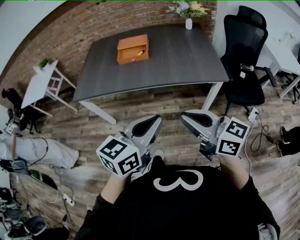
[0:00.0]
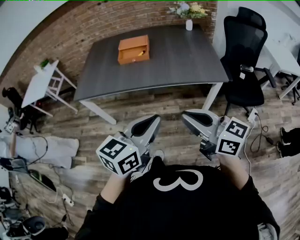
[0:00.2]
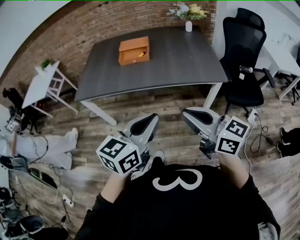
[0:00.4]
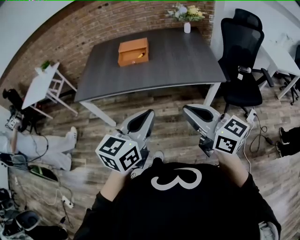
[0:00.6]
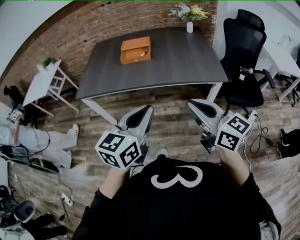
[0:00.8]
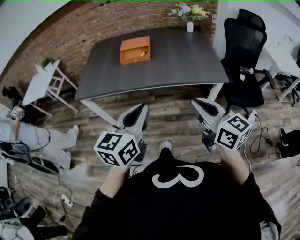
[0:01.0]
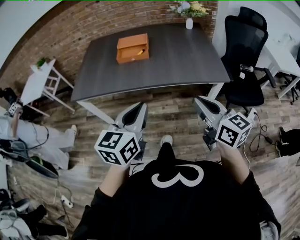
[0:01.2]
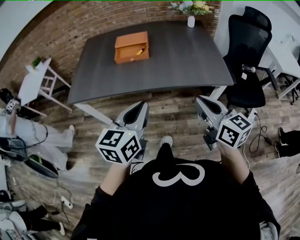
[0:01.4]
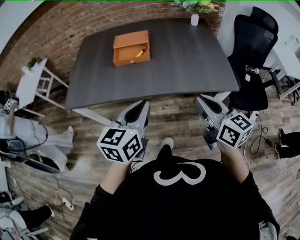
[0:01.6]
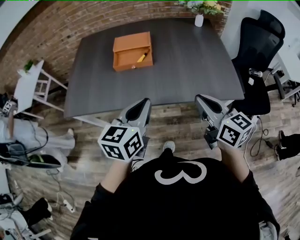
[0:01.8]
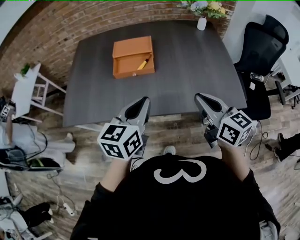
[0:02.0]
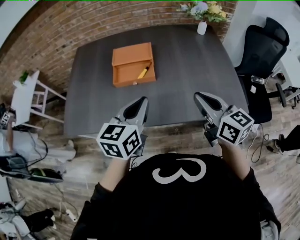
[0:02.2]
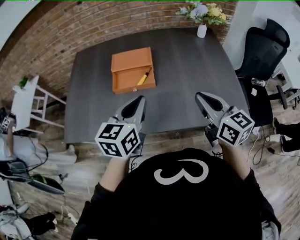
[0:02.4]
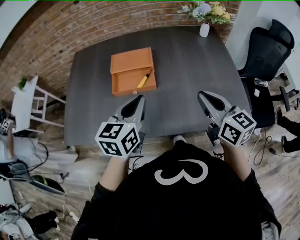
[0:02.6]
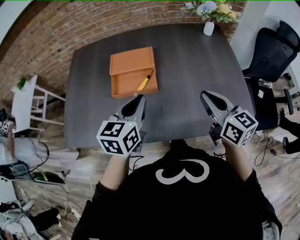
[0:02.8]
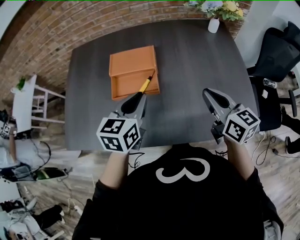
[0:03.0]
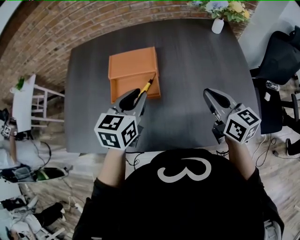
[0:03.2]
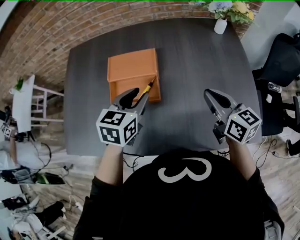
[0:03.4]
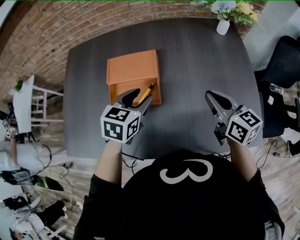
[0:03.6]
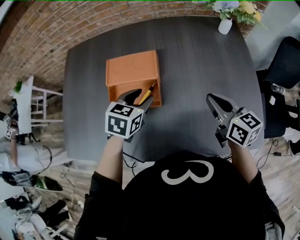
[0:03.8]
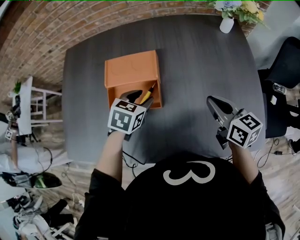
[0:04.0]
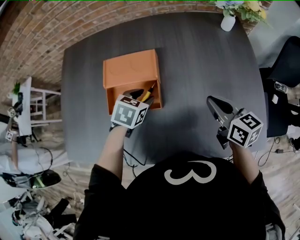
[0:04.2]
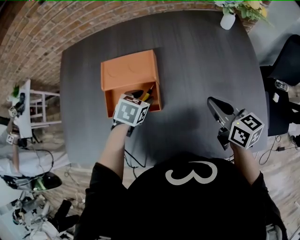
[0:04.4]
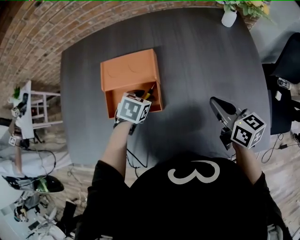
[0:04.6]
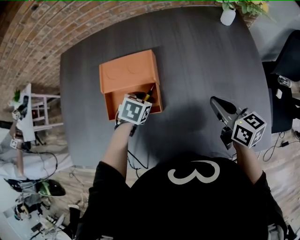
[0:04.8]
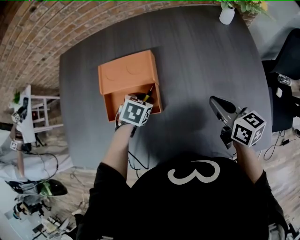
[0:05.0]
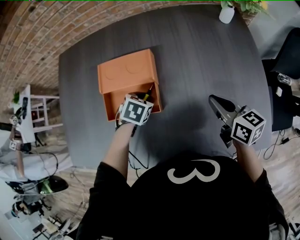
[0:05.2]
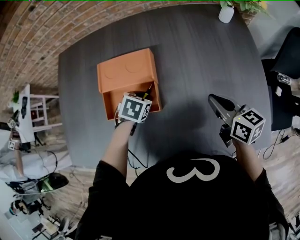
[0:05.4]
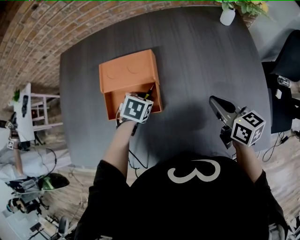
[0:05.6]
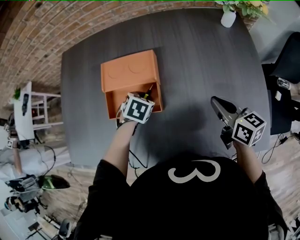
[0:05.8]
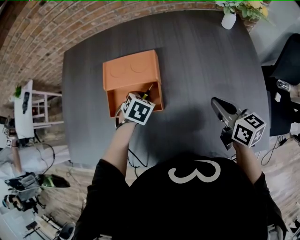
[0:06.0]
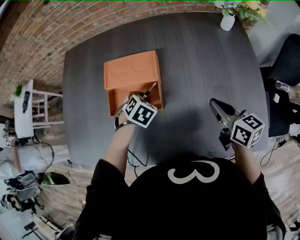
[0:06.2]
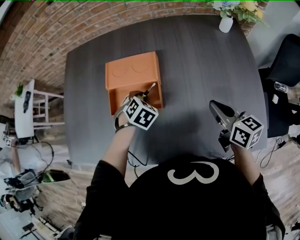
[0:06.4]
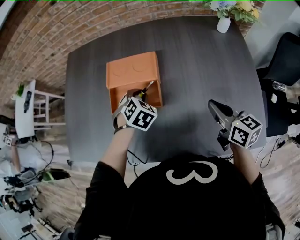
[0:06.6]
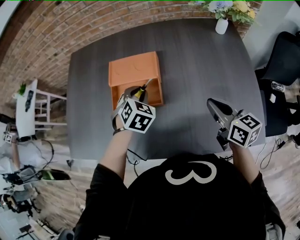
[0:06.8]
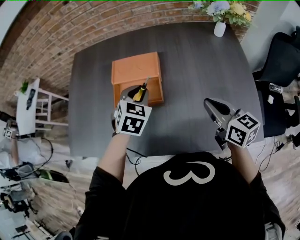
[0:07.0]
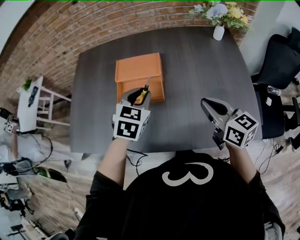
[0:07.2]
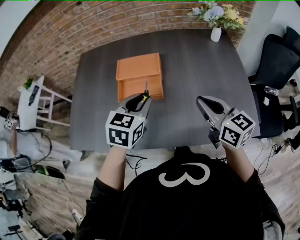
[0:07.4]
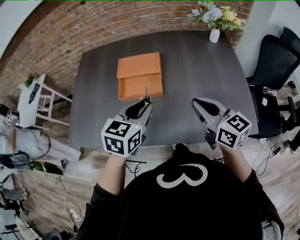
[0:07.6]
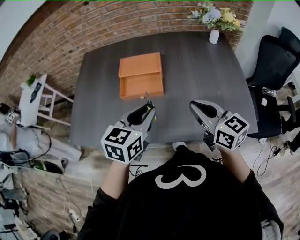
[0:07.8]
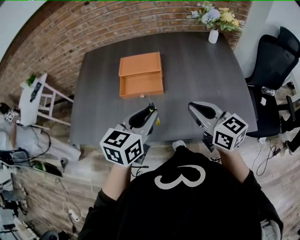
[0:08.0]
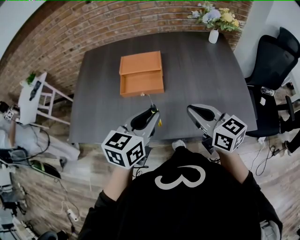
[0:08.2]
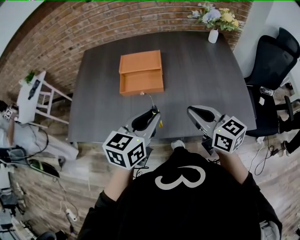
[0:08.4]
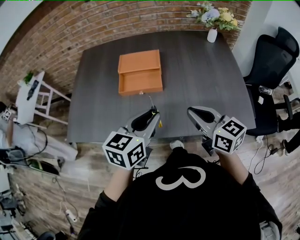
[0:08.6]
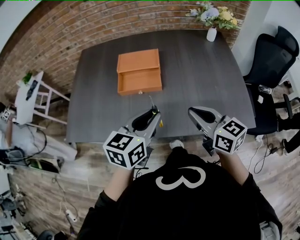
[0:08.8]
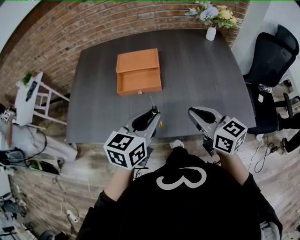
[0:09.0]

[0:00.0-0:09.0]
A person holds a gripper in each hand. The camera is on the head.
0:00.0 to 0:01.6: The grippers both shift forward by some 20 cm. The right gripper swivels some 20 degrees.
0:01.6 to 0:03.0: Both grippers travel together forward, about 35 cm.
0:03.0 to 0:04.4: The right gripper goes some 15 cm forward and downward; the left gripper travels downward and forward by roughly 20 cm, tips its fingers downward by roughly 40 degrees, and opens its fingers.
0:04.4 to 0:06.0: The left gripper closes.
0:06.0 to 0:07.6: The right gripper travels backward, upward and to the left by some 20 cm, and changes its angle by about 20 degrees. Meanwhile the left gripper heads upward and backward, covering roughly 30 cm, and angles its fingers upward, by approximately 40 degrees.
0:07.6 to 0:09.0: The two grippers go some 5 cm backward.

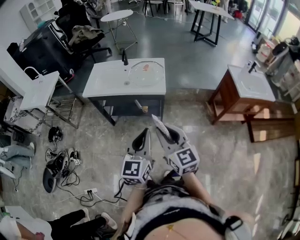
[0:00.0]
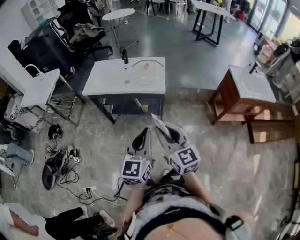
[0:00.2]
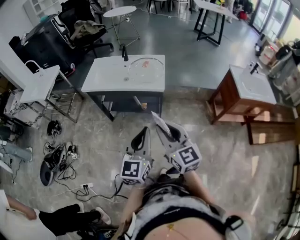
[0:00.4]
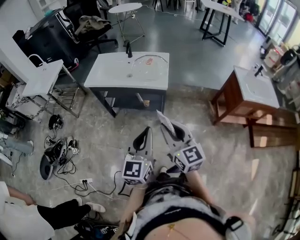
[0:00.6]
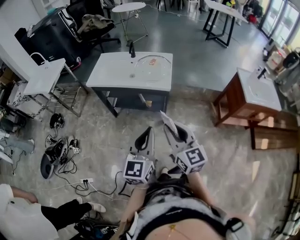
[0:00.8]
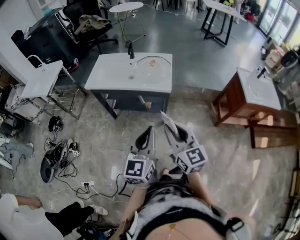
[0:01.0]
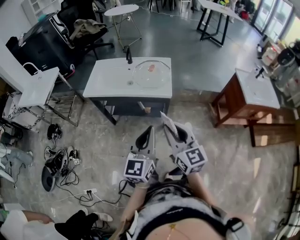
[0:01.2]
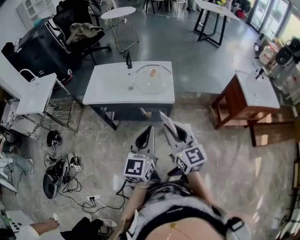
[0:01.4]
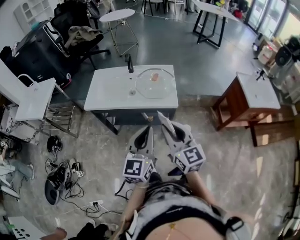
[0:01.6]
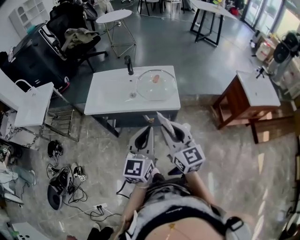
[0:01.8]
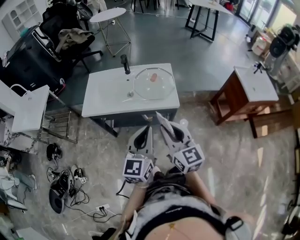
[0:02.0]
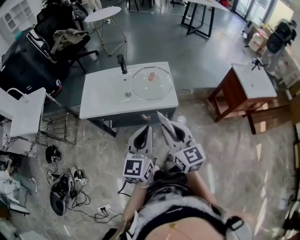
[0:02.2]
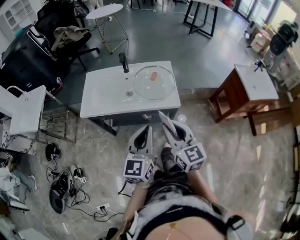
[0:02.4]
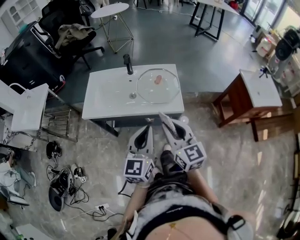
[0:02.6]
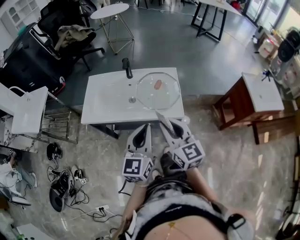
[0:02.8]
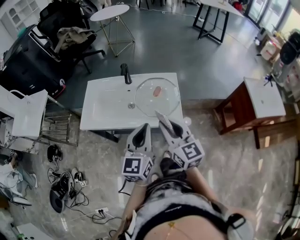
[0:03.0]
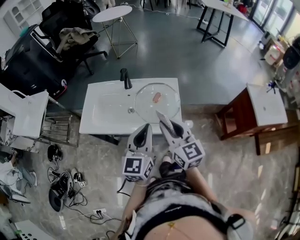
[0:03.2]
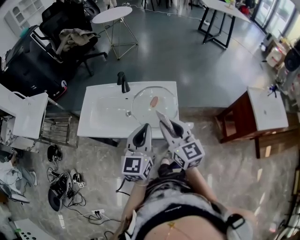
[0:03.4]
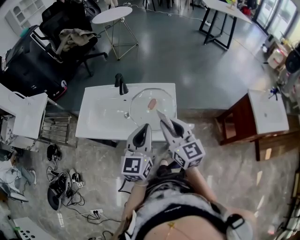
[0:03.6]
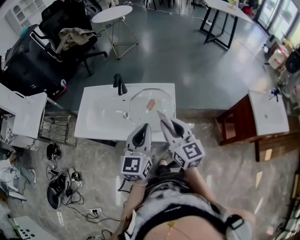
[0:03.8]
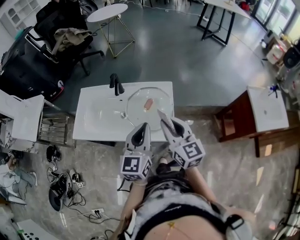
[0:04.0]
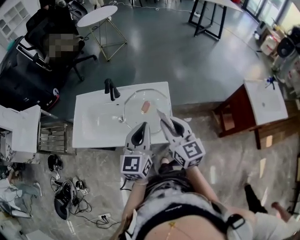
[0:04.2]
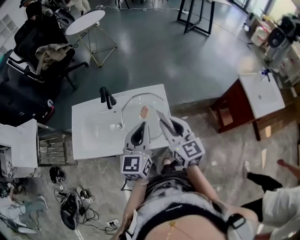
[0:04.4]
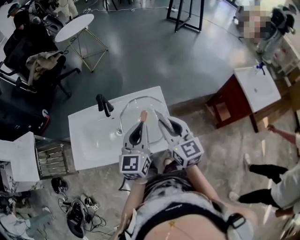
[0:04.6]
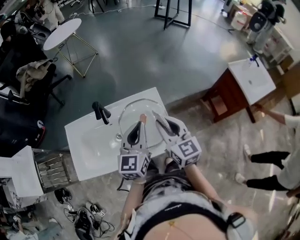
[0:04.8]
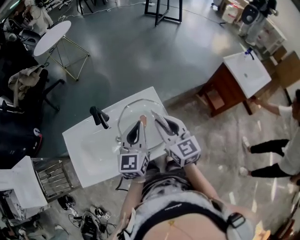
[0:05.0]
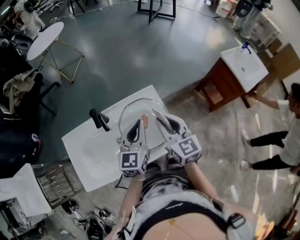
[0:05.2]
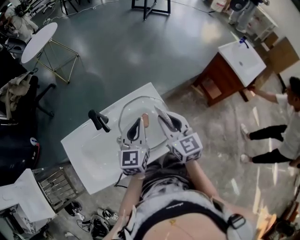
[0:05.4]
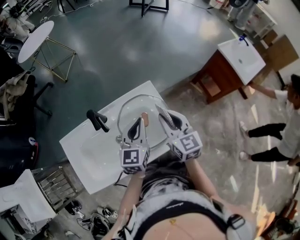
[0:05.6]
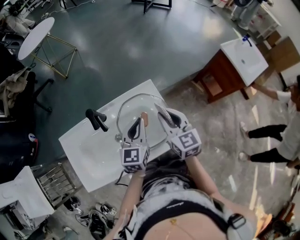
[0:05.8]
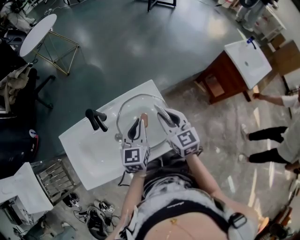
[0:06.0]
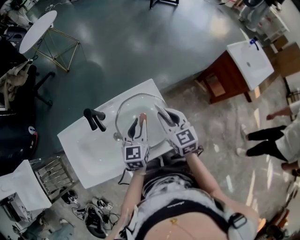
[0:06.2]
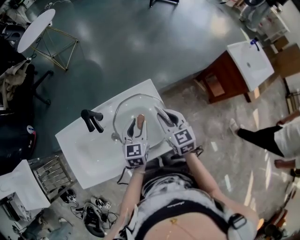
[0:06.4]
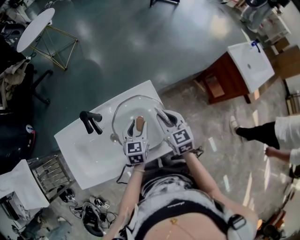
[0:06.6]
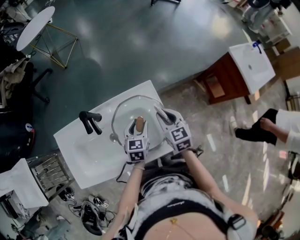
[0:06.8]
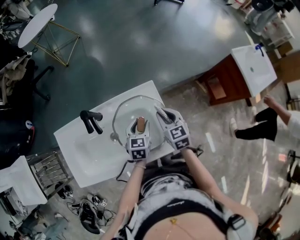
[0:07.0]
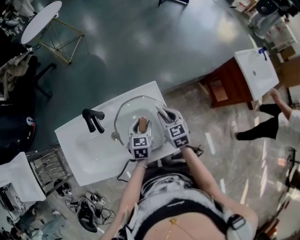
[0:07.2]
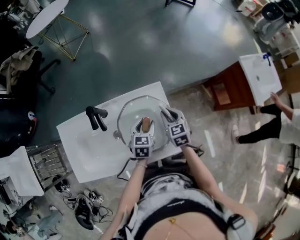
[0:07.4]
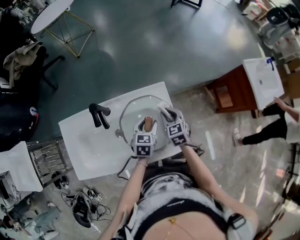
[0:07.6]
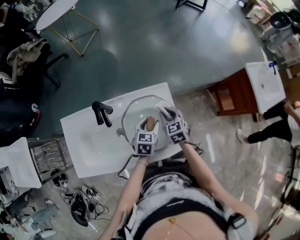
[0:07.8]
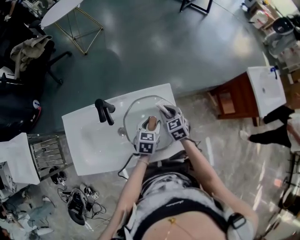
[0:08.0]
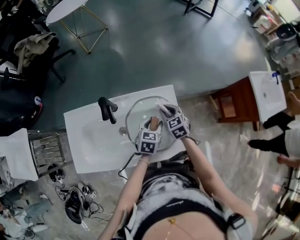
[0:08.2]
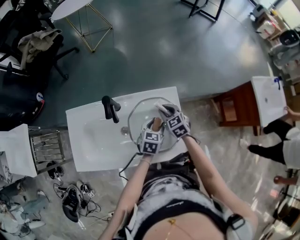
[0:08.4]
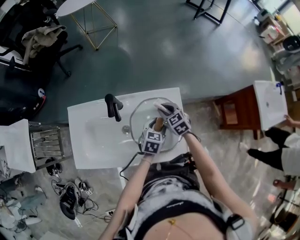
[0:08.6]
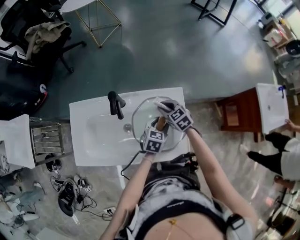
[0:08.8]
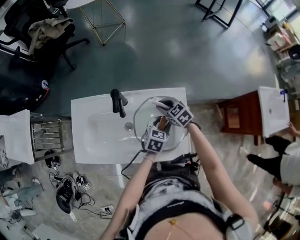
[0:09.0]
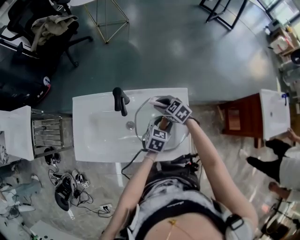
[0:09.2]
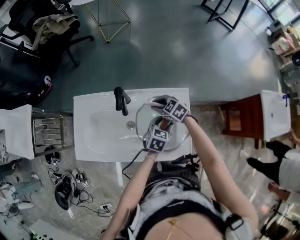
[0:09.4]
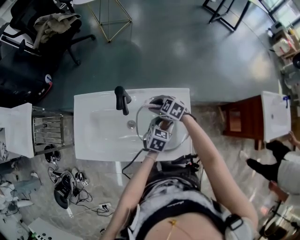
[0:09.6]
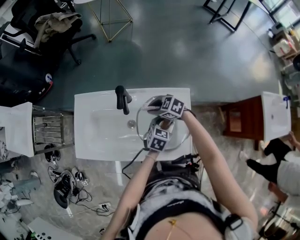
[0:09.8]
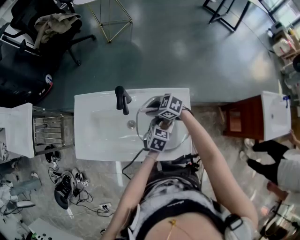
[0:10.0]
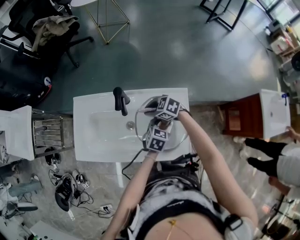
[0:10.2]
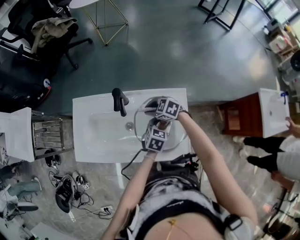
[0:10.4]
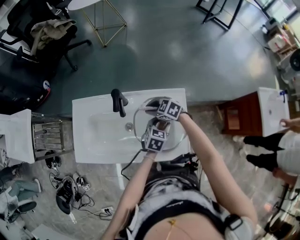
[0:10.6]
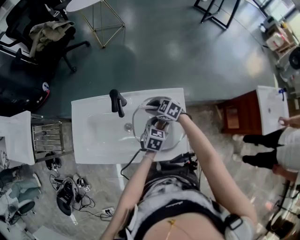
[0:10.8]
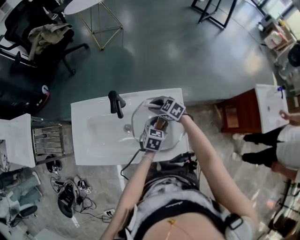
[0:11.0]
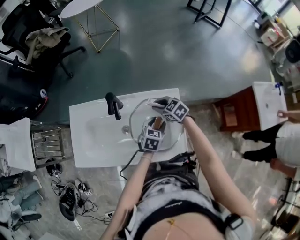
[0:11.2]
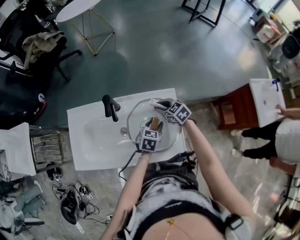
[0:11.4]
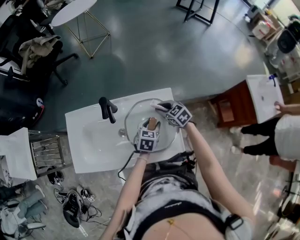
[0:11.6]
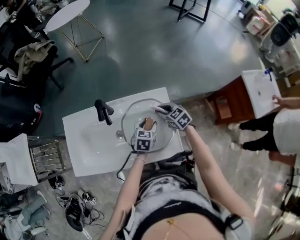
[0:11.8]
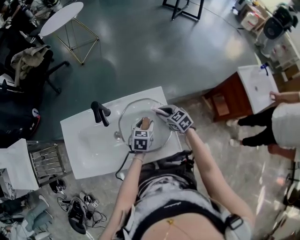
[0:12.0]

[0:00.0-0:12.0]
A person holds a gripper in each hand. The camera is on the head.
0:00.0 to 0:01.6: The right gripper goes some 15 cm forward; the left gripper travels forward and to the left by roughly 15 cm.
0:01.6 to 0:03.0: The grippers both shift forward by some 20 cm.
0:03.0 to 0:04.4: Both grippers travel together forward and to the right, roughly 15 cm.
0:04.4 to 0:06.0: The right gripper travels forward and downward by roughly 15 cm, and rotates approximately 20 degrees; the left gripper travels downward and forward by approximately 15 cm, and swivels roughly 20 degrees.
0:06.0 to 0:07.6: The right gripper travels downward and forward by some 15 cm, and rotates some 20 degrees. Meanwhile the left gripper is displaced downward by approximately 15 cm, rotates some 20 degrees, and opens its fingers.
0:07.6 to 0:09.0: The right gripper goes about 10 cm to the left, and rotates roughly 40 degrees.
0:09.0 to 0:10.4: The right gripper shifts by some 10 cm, and rotates some 30 degrees.
0:10.4 to 0:12.0: The right gripper travels to the right by some 15 cm, and changes its angle by approximately 40 degrees.

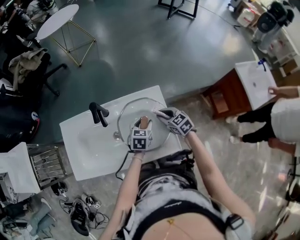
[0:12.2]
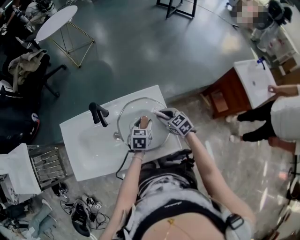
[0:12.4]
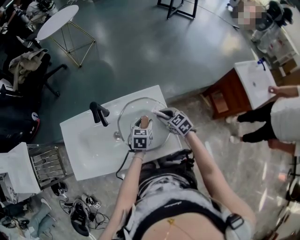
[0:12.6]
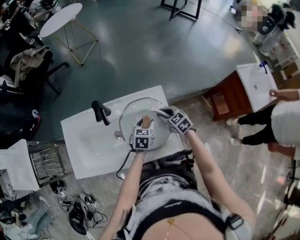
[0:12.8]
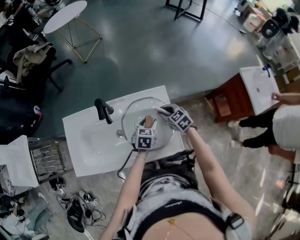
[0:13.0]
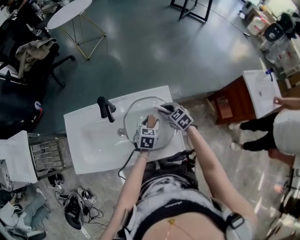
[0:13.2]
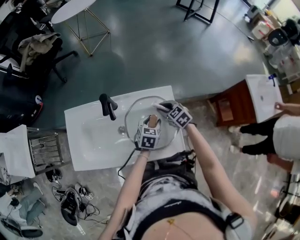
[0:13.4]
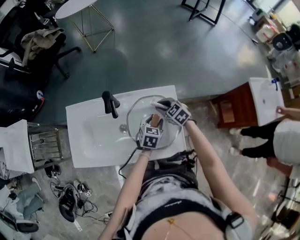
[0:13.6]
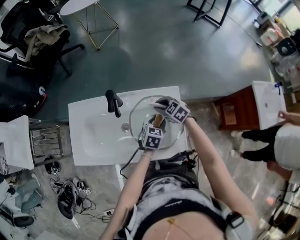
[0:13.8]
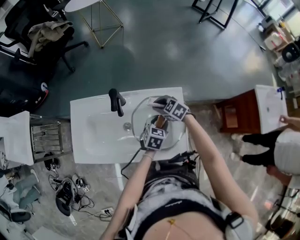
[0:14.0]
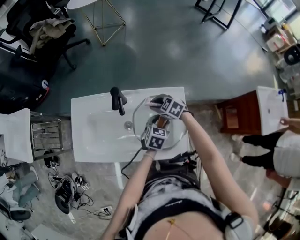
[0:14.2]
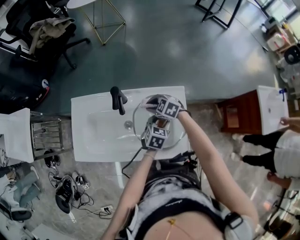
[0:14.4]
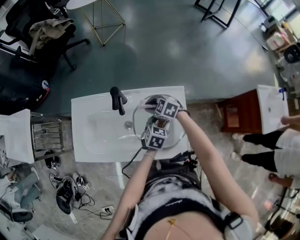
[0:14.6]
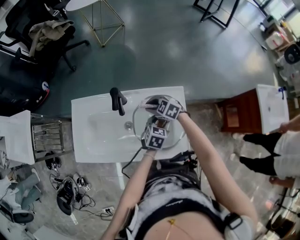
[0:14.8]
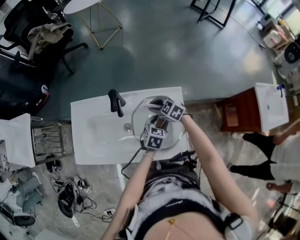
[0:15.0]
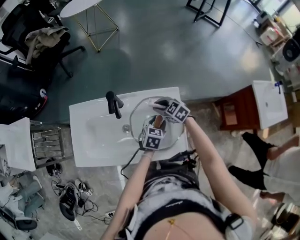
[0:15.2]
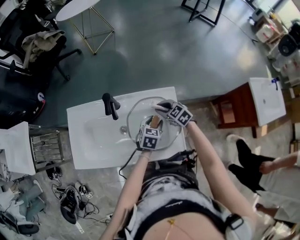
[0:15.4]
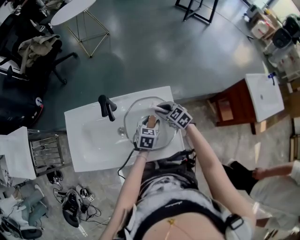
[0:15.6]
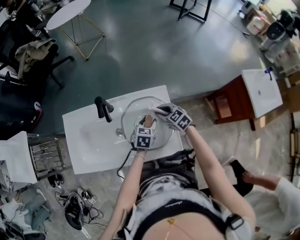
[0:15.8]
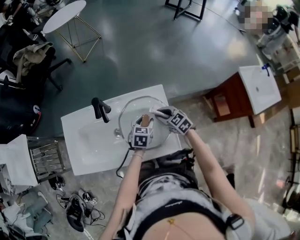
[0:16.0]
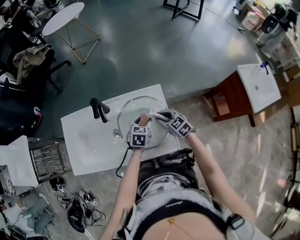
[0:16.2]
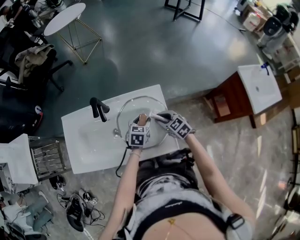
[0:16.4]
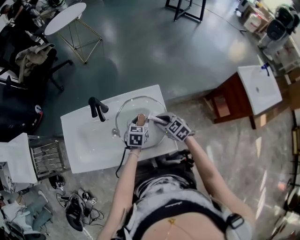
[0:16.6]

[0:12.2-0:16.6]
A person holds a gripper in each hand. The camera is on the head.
0:12.2 to 0:13.6: The right gripper heads to the left and forward, covering about 10 cm.
0:13.6 to 0:15.2: The right gripper travels to the left and back again, about 10 cm each way.
0:15.2 to 0:16.6: The right gripper travels backward and to the right by about 15 cm.
